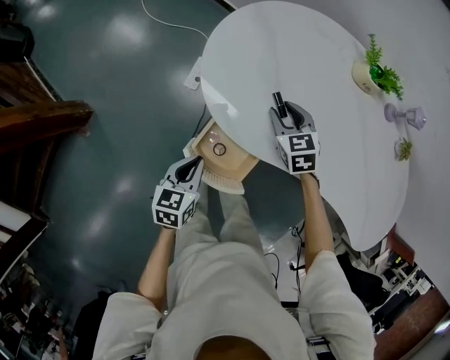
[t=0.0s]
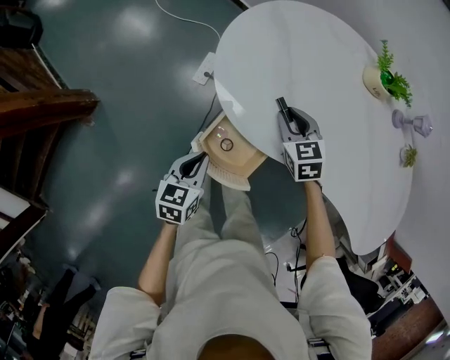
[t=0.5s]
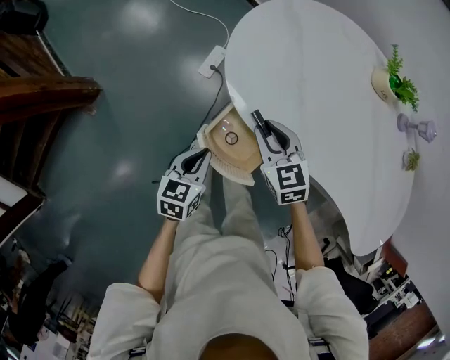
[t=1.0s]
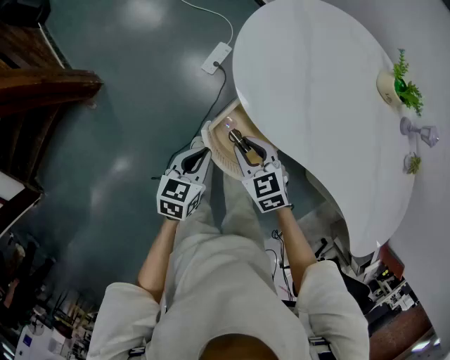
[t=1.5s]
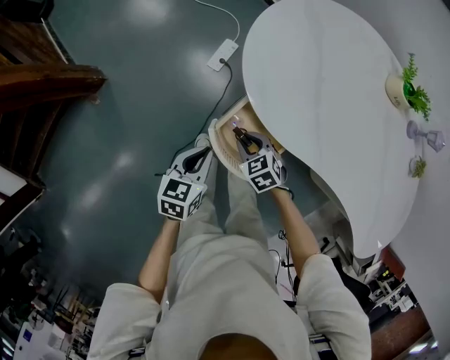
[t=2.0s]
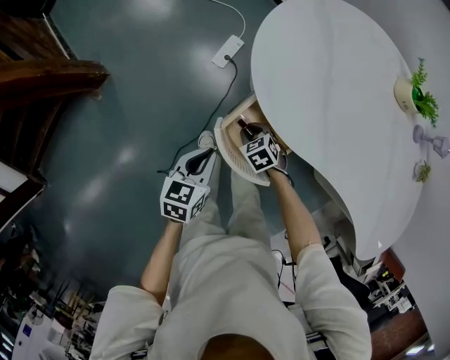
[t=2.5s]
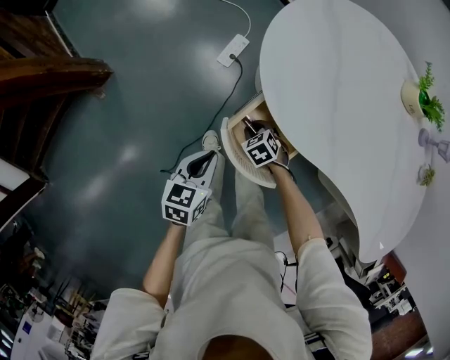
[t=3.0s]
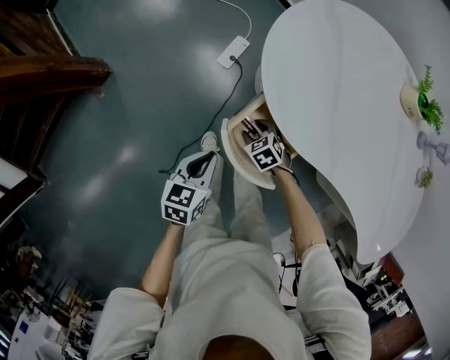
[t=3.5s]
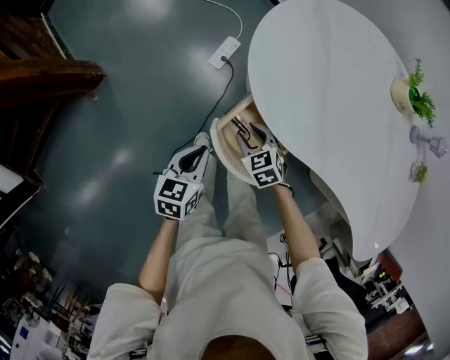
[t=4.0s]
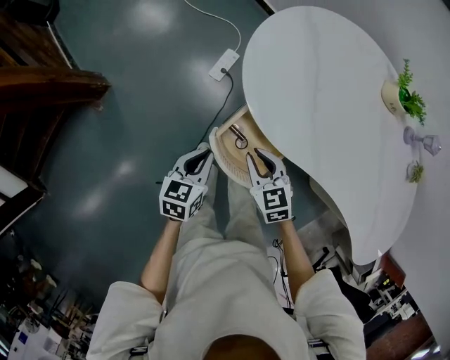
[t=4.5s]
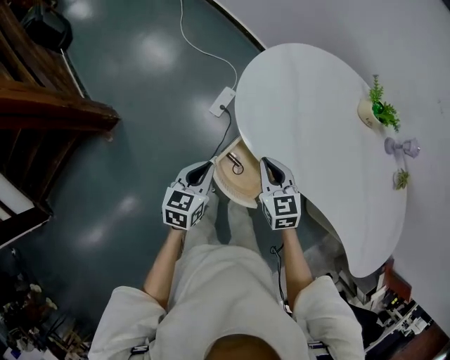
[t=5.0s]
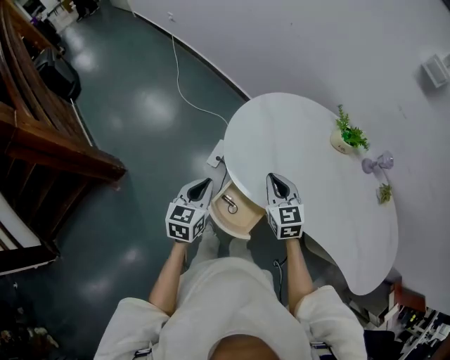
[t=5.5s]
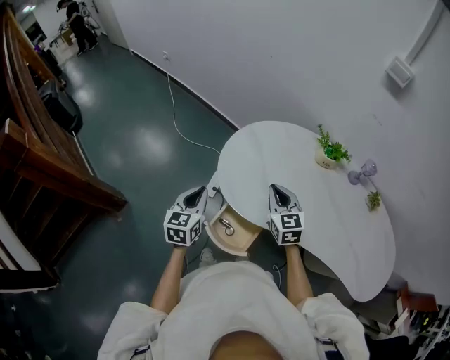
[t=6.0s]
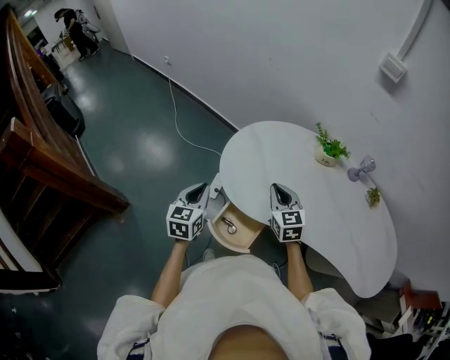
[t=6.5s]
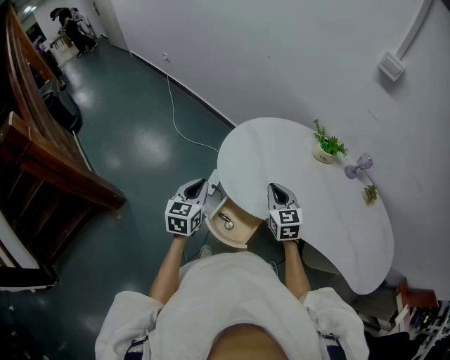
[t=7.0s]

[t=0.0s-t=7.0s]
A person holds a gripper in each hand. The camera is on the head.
t=0.0s to t=2.0s: The left gripper is displaced to the left by roughly 5 cm. The right gripper moves to the left, backward and downward, some 25 cm, and changes its angle by approximately 30 degrees.
t=2.0s to t=3.5s: The right gripper heads downward, covering approximately 10 cm.
t=3.5s to t=5.0s: The right gripper moves upward, roughly 30 cm, points its fingers roughly 30 degrees further upward, and closes up. Meanwhile the left gripper travels upward and forward by roughly 10 cm.
t=5.0s to t=7.0s: The left gripper is displaced upward by approximately 15 cm. Meanwhile the right gripper is displaced upward and to the right by about 15 cm.

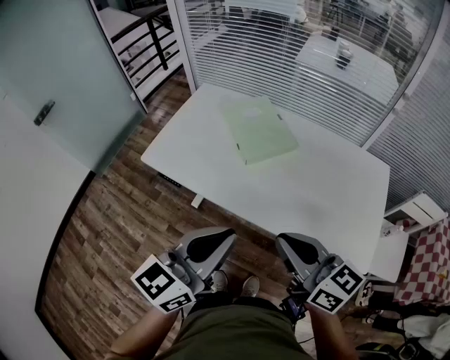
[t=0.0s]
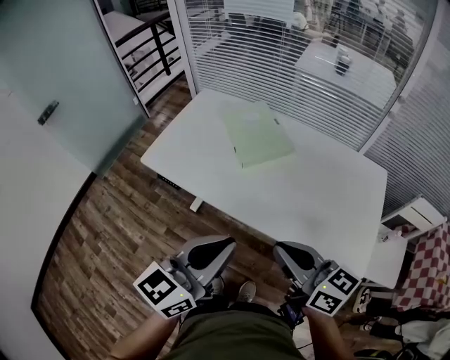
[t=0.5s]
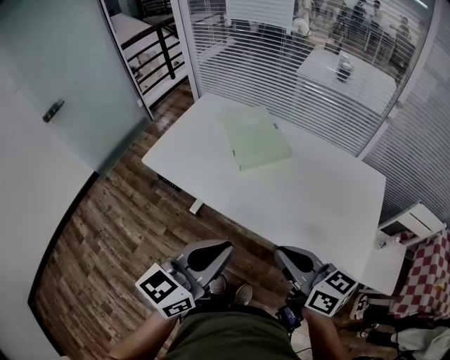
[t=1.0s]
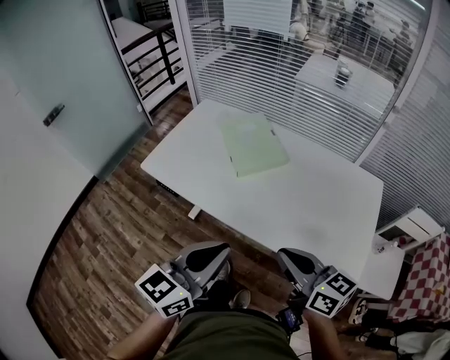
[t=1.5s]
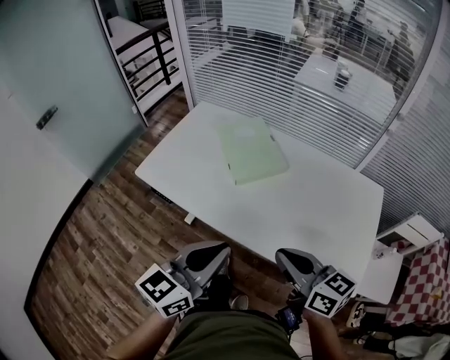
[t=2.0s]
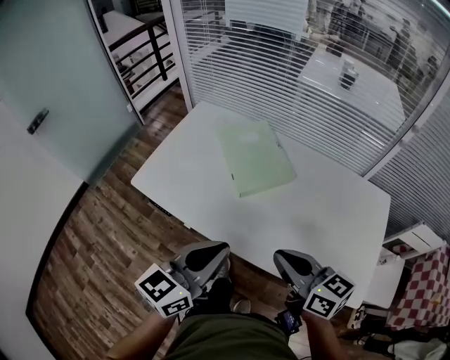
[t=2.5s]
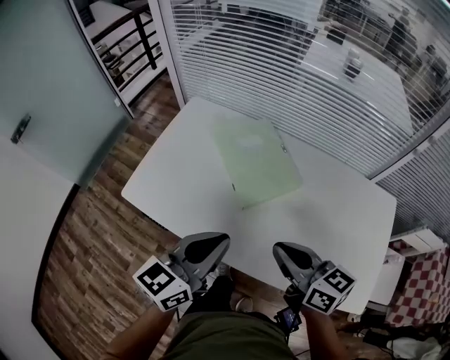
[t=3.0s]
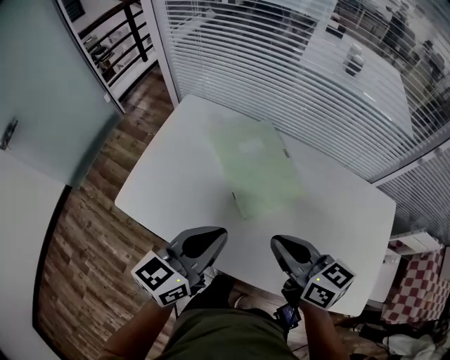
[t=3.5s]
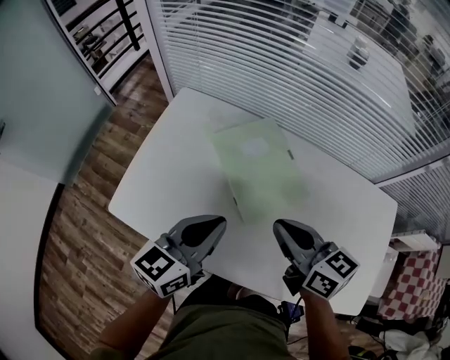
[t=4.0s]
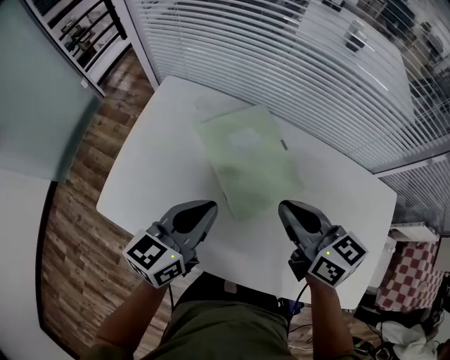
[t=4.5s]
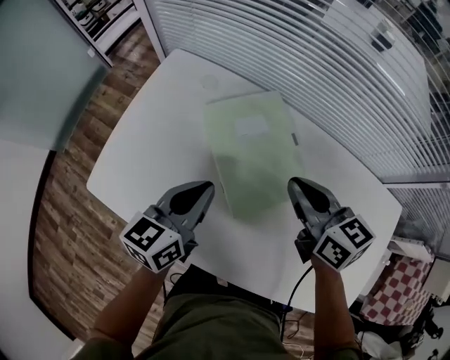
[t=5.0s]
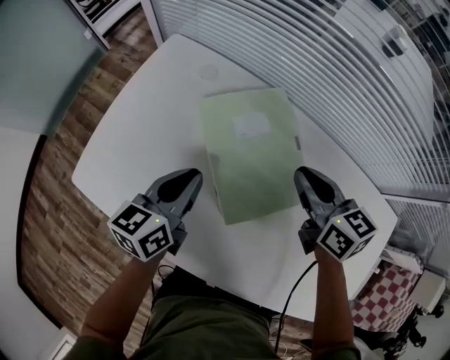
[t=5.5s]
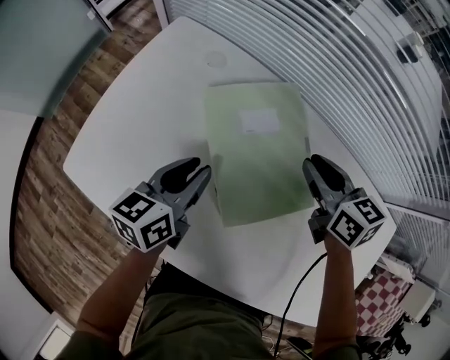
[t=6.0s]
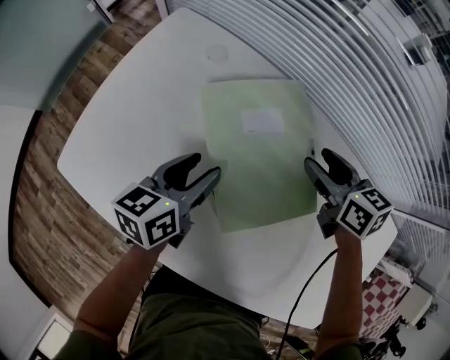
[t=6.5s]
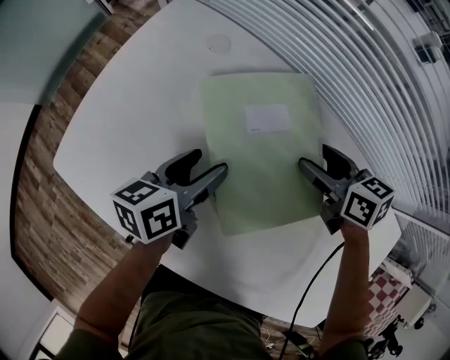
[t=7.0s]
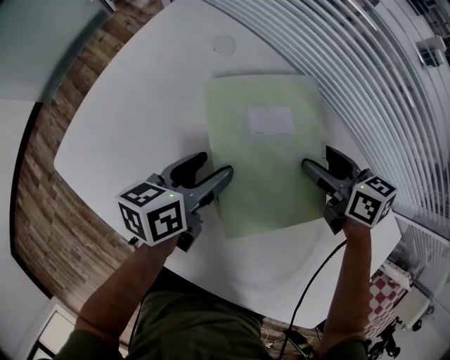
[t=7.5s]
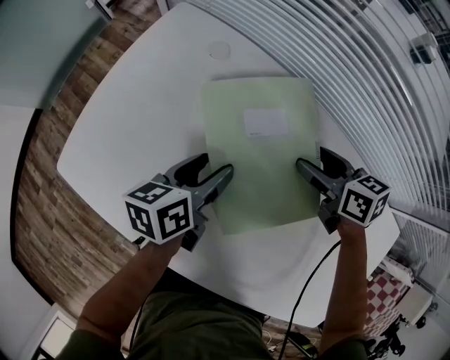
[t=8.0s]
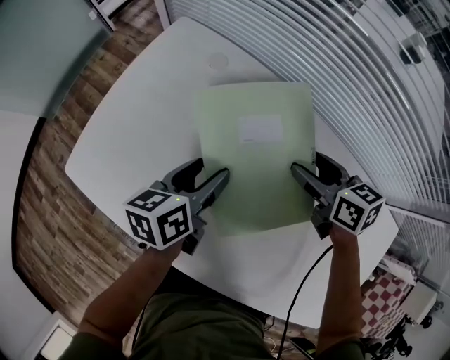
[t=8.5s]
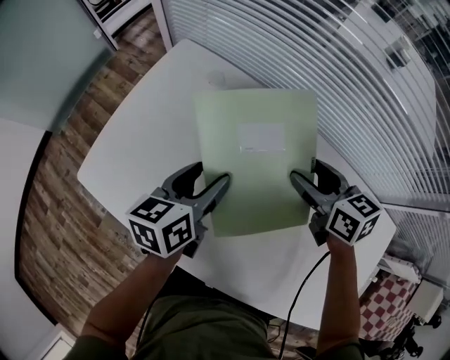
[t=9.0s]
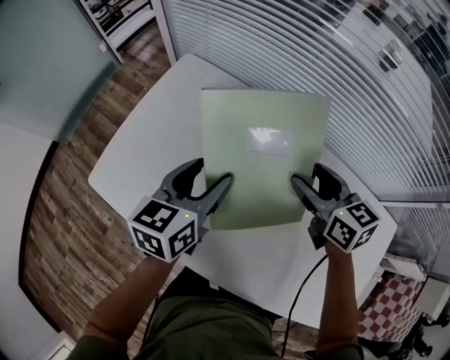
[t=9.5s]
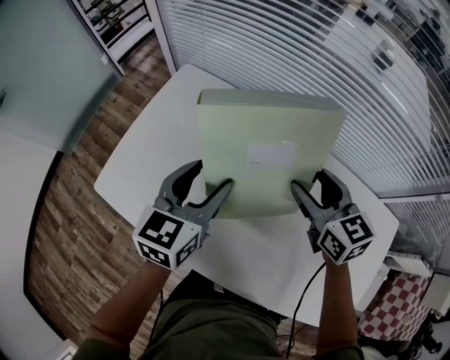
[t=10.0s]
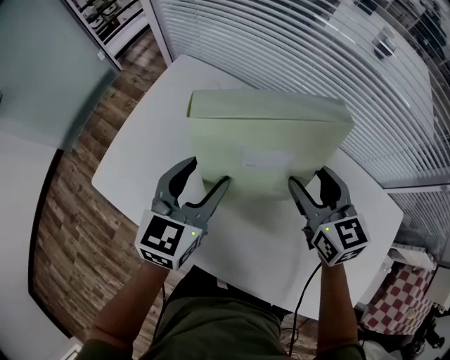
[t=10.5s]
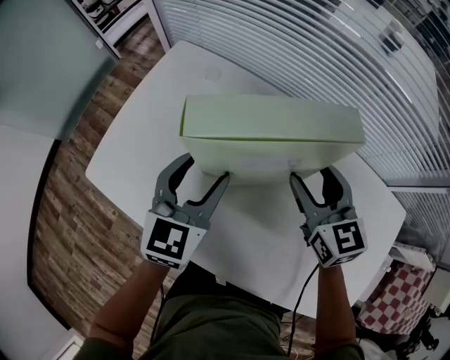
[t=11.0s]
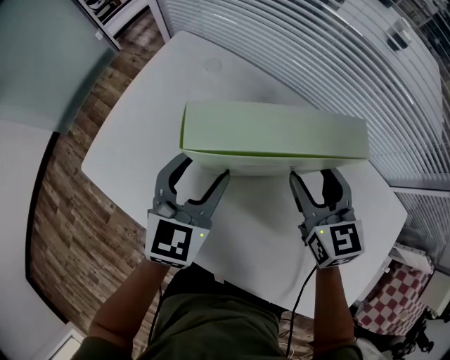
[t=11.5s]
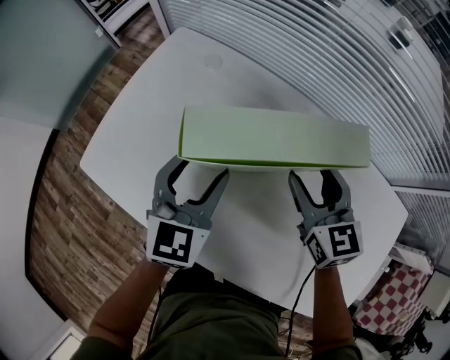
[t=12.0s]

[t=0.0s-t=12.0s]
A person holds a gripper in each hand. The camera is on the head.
t=0.0s to t=2.0s: The right gripper travels to the right by some 5 cm. The left gripper shifts by roughly 5 cm.
t=2.0s to t=4.0s: The grippers both shift forward by approximately 30 cm.
t=4.0s to t=6.0s: The left gripper moves downward and forward, about 20 cm, and turns by approximately 30 degrees; the right gripper heads forward, downward and to the right, covering approximately 25 cm.
t=6.0s to t=8.0s: The left gripper moves some 5 cm, and opens up, while the right gripper shifts some 5 cm downward, and opens up.
t=8.0s to t=10.0s: The right gripper shifts about 20 cm upward and backward, and changes its angle by approximately 30 degrees. Meanwhile the left gripper shifts roughly 20 cm upward, and swivels approximately 40 degrees.
t=10.0s to t=12.0s: The right gripper heads downward, covering roughly 5 cm; the left gripper changes place by about 5 cm, and changes its angle by about 20 degrees.

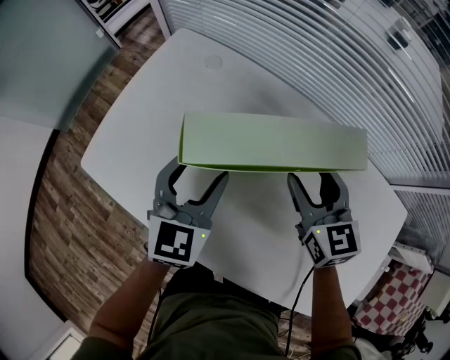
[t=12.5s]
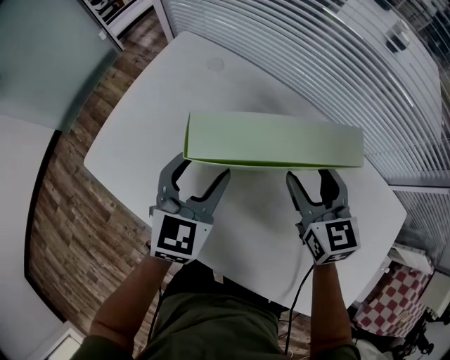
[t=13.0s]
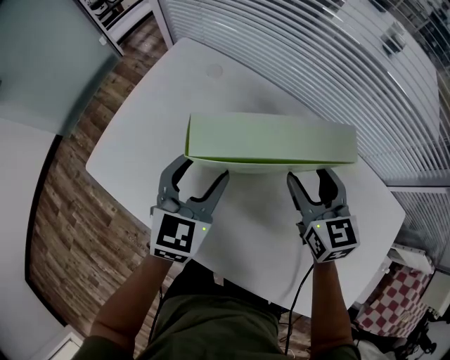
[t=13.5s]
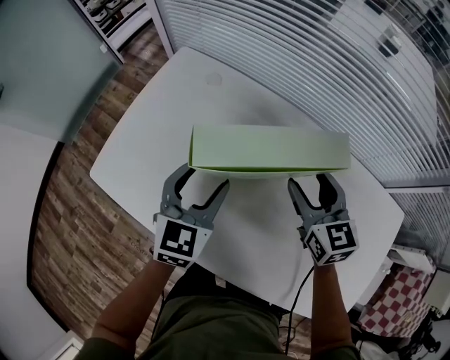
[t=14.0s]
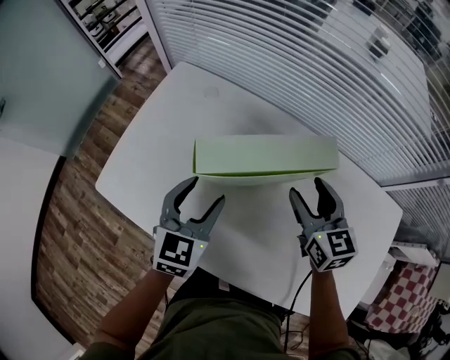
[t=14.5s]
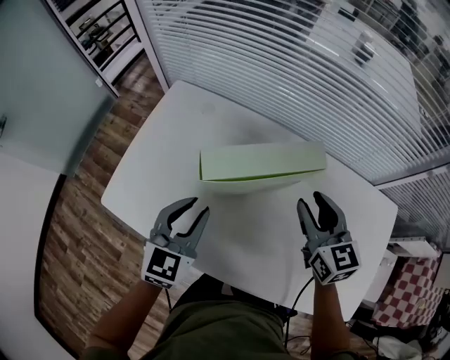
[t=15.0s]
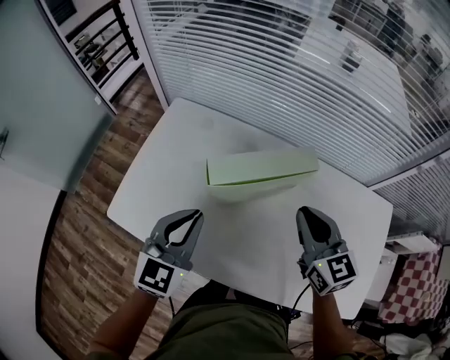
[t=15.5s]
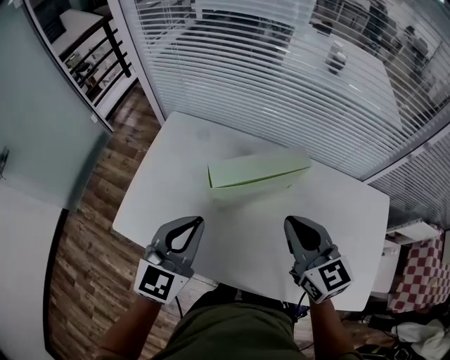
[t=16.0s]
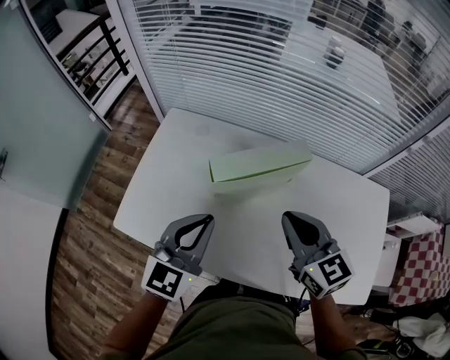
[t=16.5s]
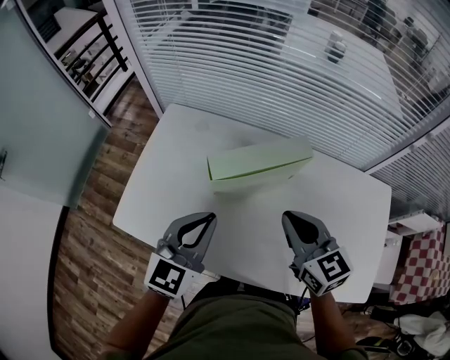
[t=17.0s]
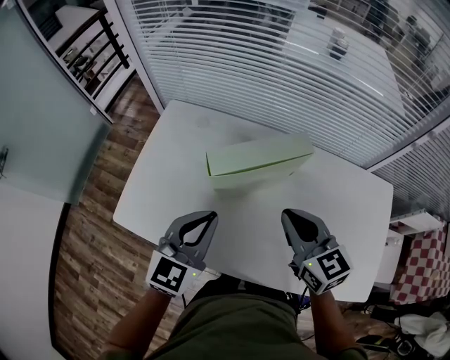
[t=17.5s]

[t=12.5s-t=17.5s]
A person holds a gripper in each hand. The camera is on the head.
t=12.5s to t=15.0s: The left gripper moves backward, roughly 5 cm, and closes; the right gripper moves upward and backward, approximately 10 cm, and closes its fingers.
t=15.0s to t=17.5s: The right gripper travels backward and to the left by roughly 10 cm, and closes. Meanwhile the left gripper travels upward by some 10 cm, and closes its fingers.

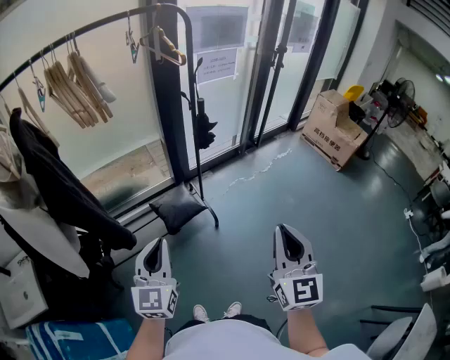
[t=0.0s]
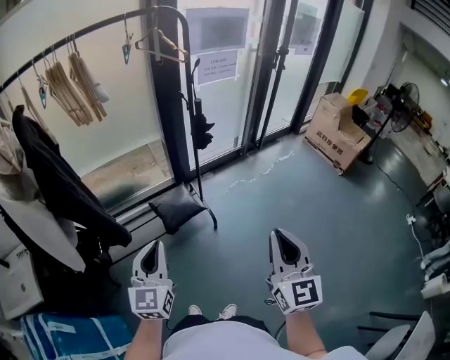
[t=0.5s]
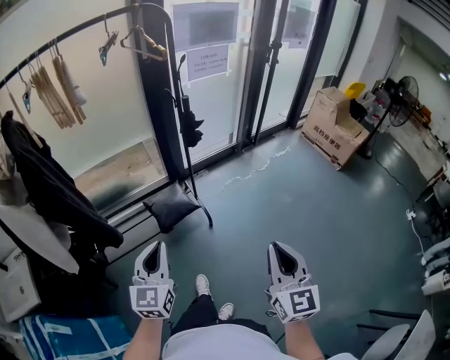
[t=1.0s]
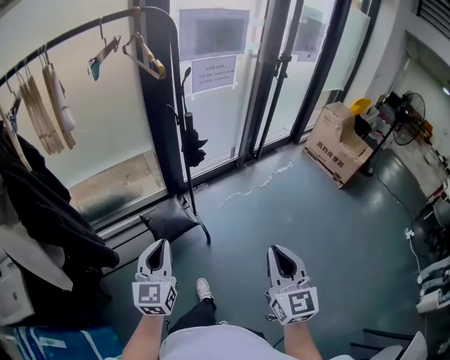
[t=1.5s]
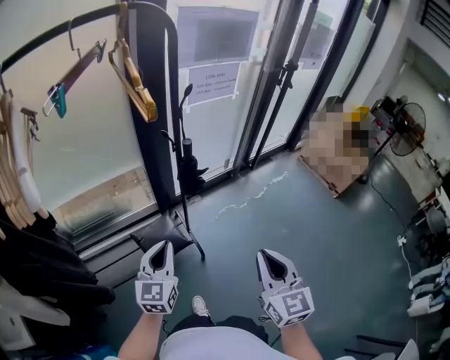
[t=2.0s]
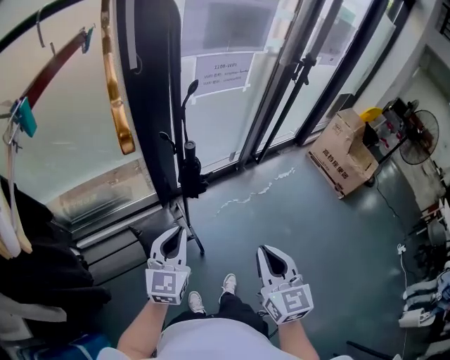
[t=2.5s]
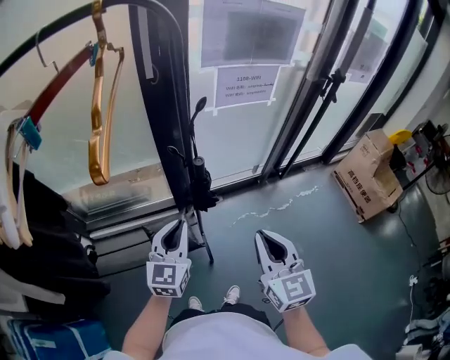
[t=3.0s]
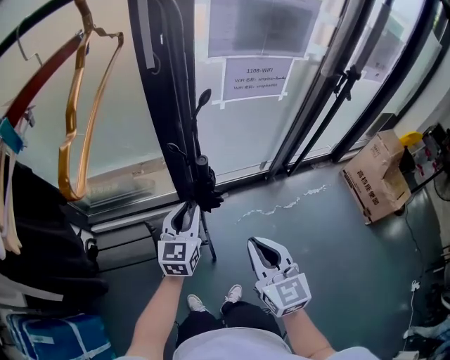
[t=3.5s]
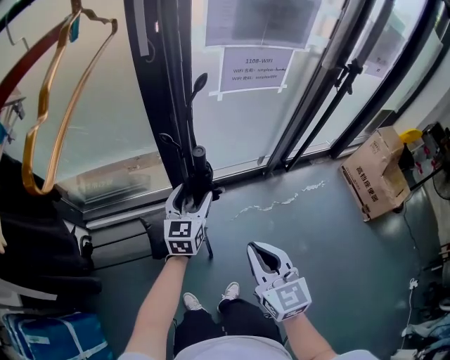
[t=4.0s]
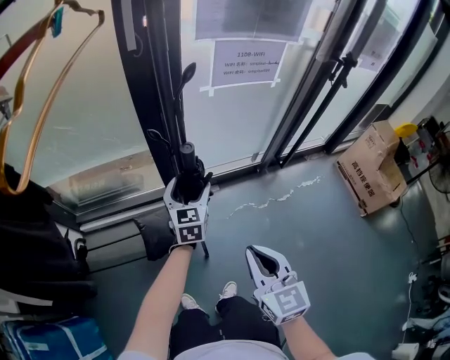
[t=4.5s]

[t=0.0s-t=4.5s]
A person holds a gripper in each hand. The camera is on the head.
t=0.0s to t=2.0s: Both grippers travel together forward, about 25 cm.
t=2.0s to t=4.5s: The left gripper heads forward and to the right, covering roughly 30 cm, and opens; the right gripper goes about 20 cm forward and downward, and rotates roughly 20 degrees.
